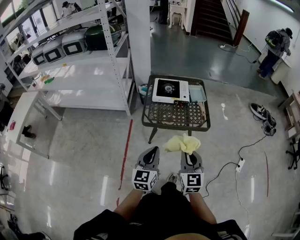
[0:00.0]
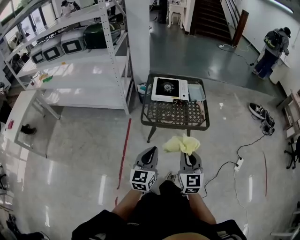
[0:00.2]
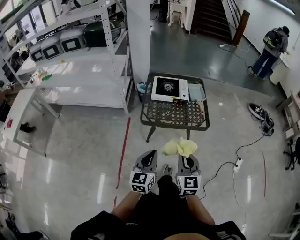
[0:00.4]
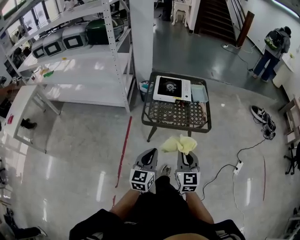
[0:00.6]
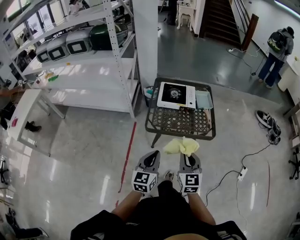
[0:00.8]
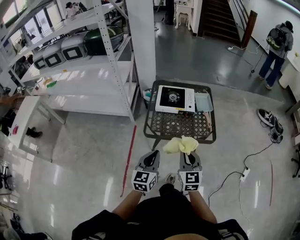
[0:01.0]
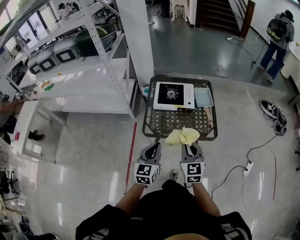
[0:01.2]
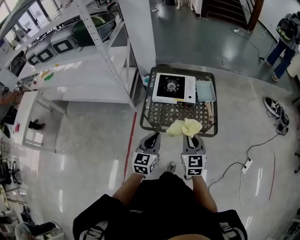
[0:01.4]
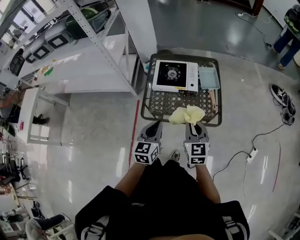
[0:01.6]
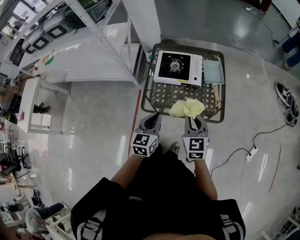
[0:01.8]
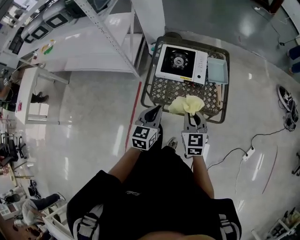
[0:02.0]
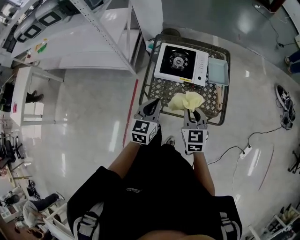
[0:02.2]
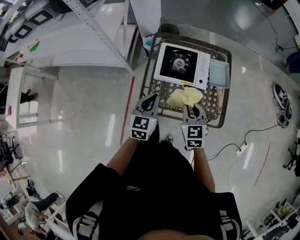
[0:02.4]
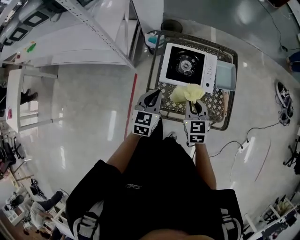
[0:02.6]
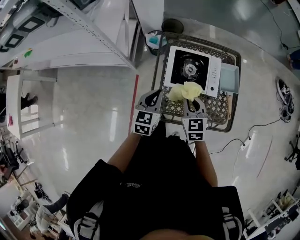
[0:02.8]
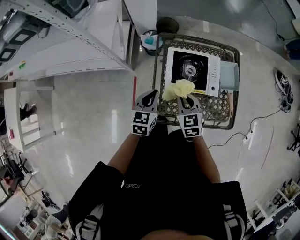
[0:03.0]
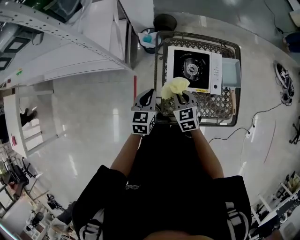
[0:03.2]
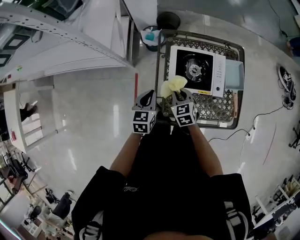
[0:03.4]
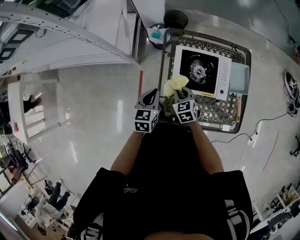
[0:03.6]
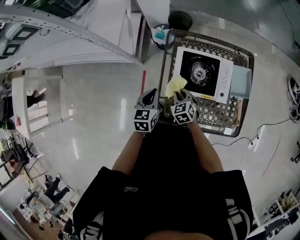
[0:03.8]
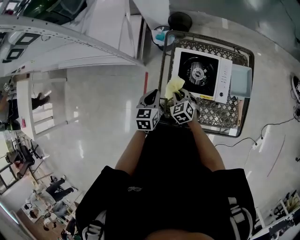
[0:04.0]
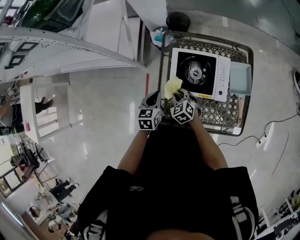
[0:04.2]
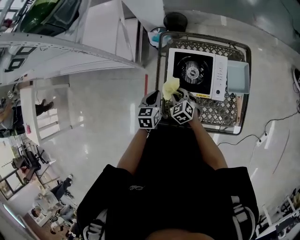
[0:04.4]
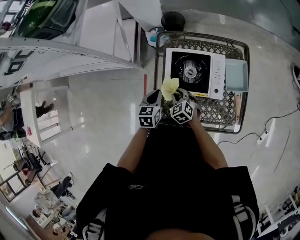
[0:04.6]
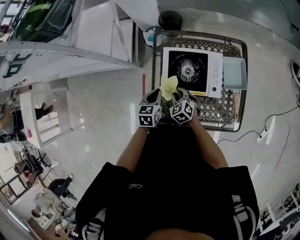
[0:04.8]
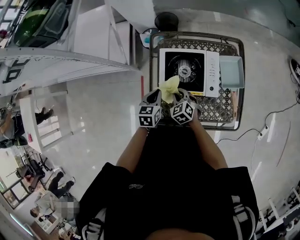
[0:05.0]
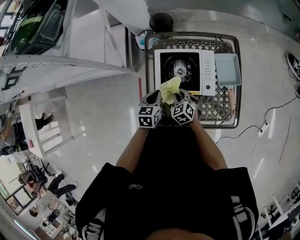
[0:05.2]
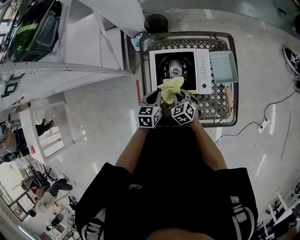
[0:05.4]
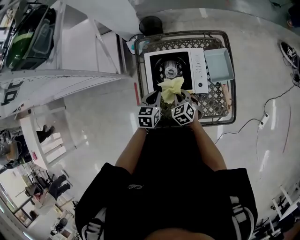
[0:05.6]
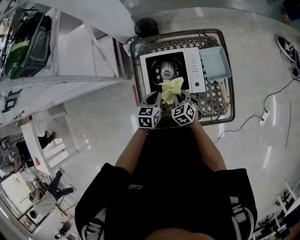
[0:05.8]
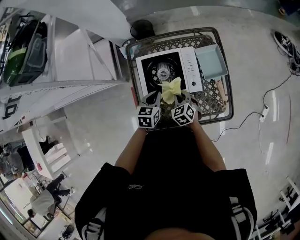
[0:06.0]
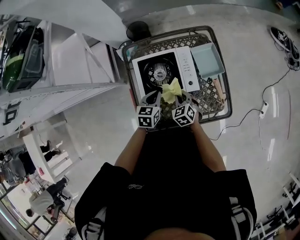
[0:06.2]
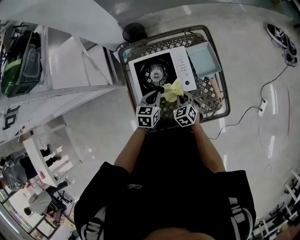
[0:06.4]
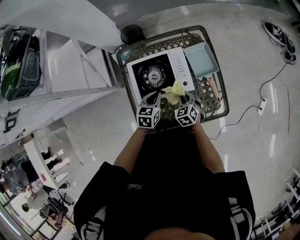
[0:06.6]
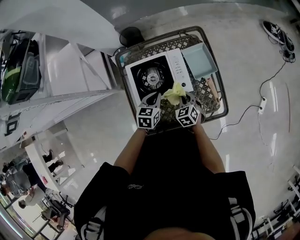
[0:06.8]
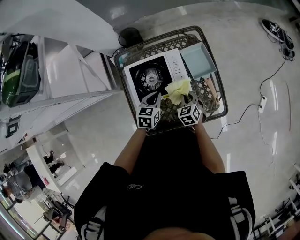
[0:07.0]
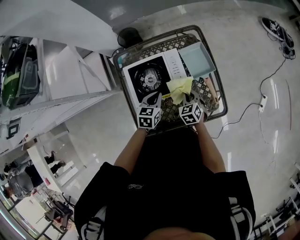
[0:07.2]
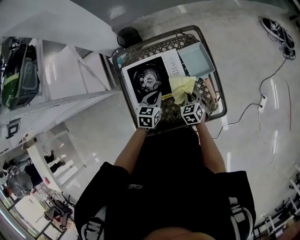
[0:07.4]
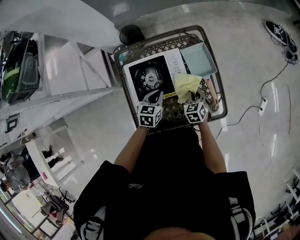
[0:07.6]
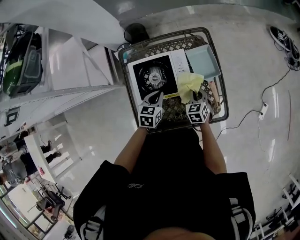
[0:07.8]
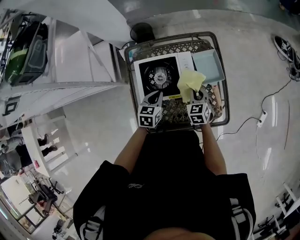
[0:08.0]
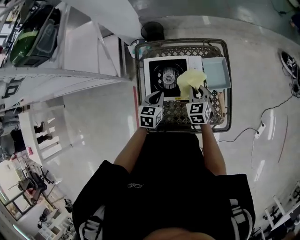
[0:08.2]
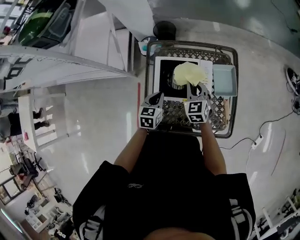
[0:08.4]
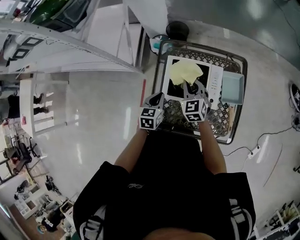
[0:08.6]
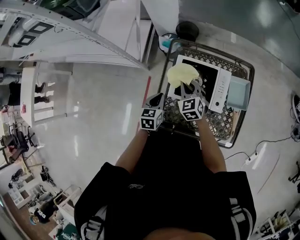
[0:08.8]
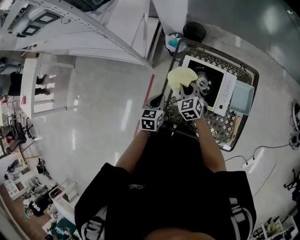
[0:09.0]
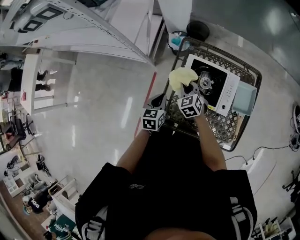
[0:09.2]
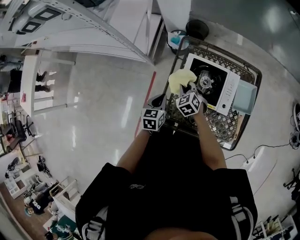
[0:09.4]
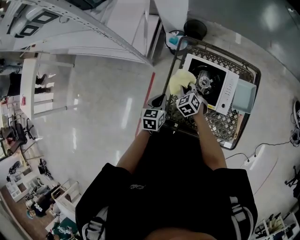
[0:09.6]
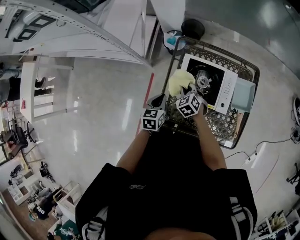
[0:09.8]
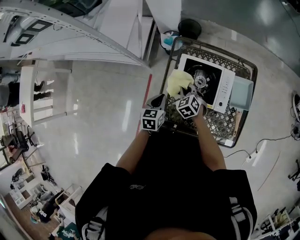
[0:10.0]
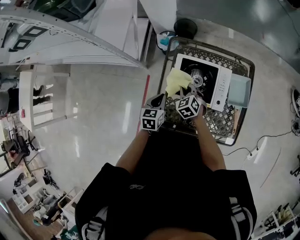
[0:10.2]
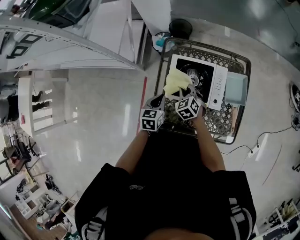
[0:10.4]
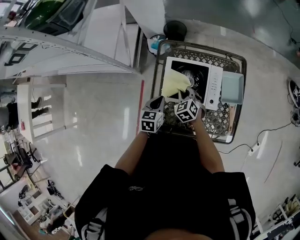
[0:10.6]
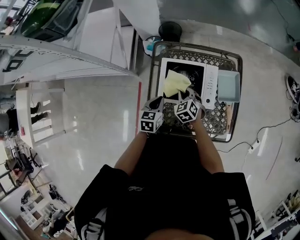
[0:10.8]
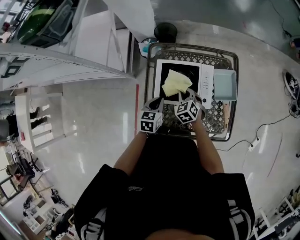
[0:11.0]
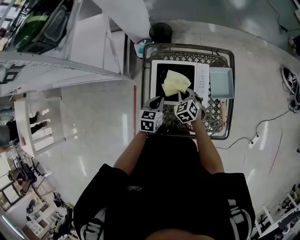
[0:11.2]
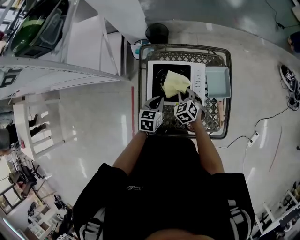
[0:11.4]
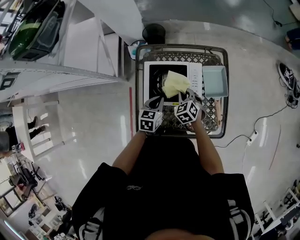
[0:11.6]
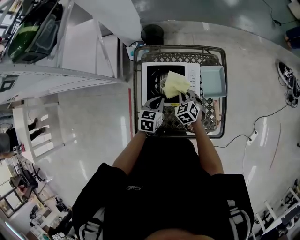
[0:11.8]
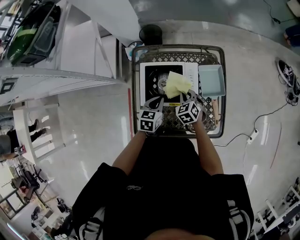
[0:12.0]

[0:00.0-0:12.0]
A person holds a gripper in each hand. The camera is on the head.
0:00.0 to 0:01.6: The two grippers go some 25 cm forward.
0:01.6 to 0:03.0: The left gripper moves forward and to the left, some 35 cm; the right gripper shifts approximately 35 cm forward, to the left and downward, and rotates roughly 20 degrees.
0:03.0 to 0:04.4: The right gripper goes about 15 cm downward, and changes its angle by approximately 20 degrees, while the left gripper is displaced downward by roughly 10 cm.
0:04.4 to 0:06.0: Both grippers move to the right, roughly 15 cm.
0:06.0 to 0:07.6: The right gripper heads to the right, covering approximately 15 cm. The left gripper is displaced to the right by about 10 cm.
0:07.6 to 0:09.0: The left gripper ends up approximately 25 cm from where it was, and changes its angle by approximately 40 degrees, while the right gripper shifts by approximately 35 cm, and swivels some 40 degrees.
0:09.0 to 0:10.4: The right gripper ends up some 5 cm from where it was.
0:10.4 to 0:12.0: The grippers both shift to the right by approximately 15 cm.

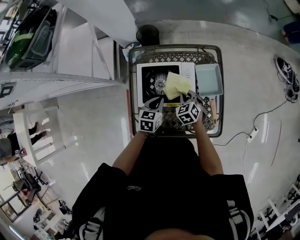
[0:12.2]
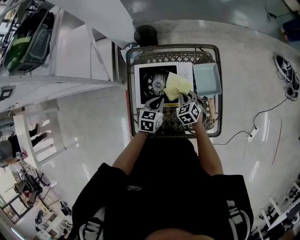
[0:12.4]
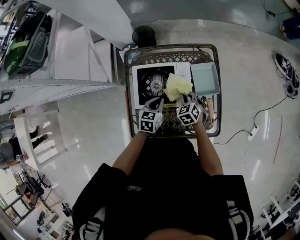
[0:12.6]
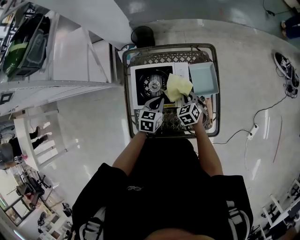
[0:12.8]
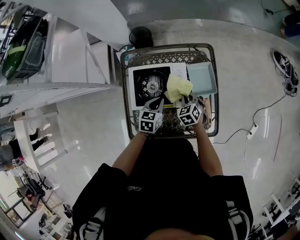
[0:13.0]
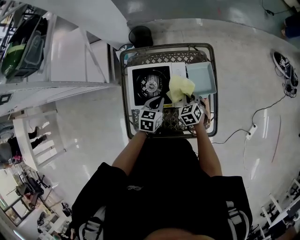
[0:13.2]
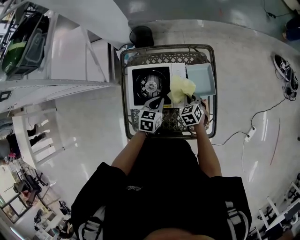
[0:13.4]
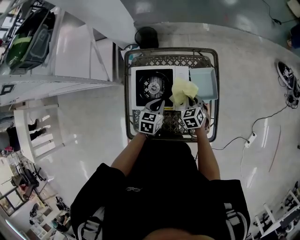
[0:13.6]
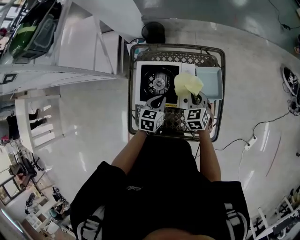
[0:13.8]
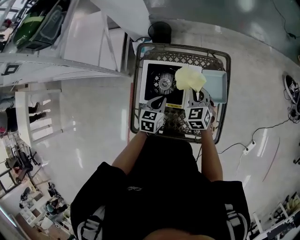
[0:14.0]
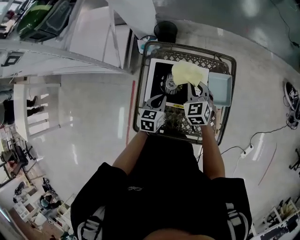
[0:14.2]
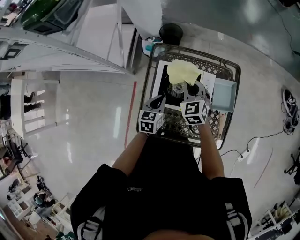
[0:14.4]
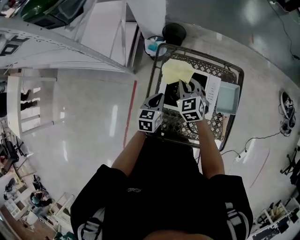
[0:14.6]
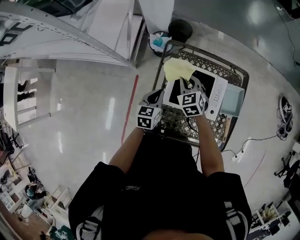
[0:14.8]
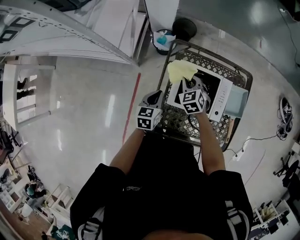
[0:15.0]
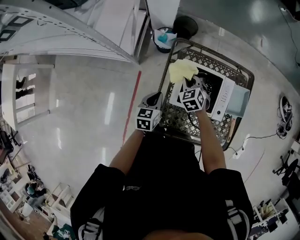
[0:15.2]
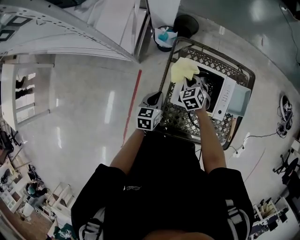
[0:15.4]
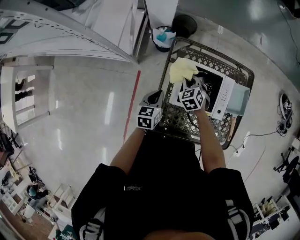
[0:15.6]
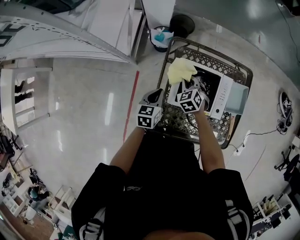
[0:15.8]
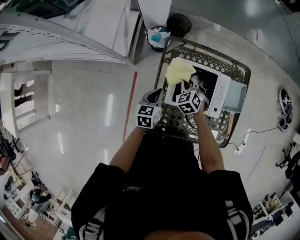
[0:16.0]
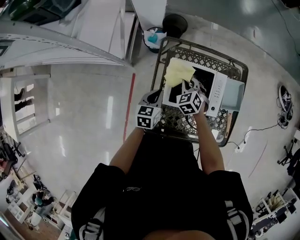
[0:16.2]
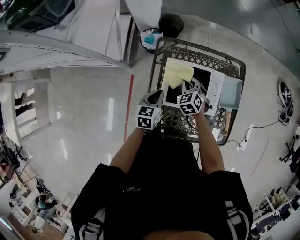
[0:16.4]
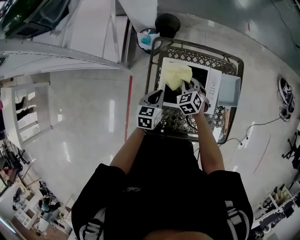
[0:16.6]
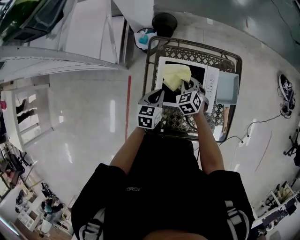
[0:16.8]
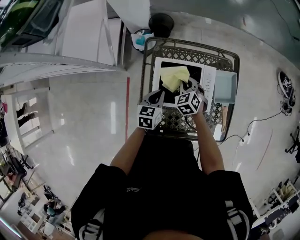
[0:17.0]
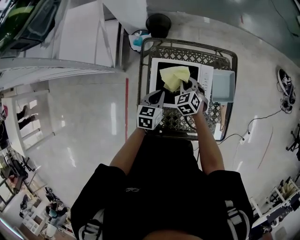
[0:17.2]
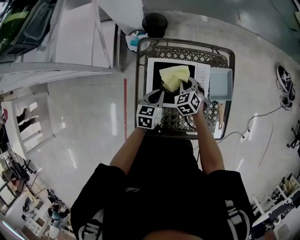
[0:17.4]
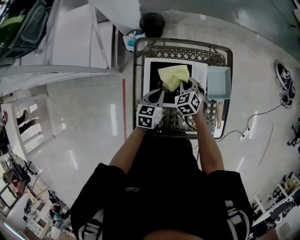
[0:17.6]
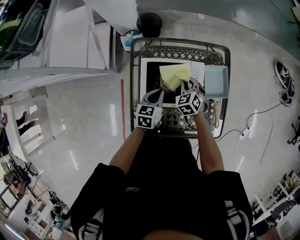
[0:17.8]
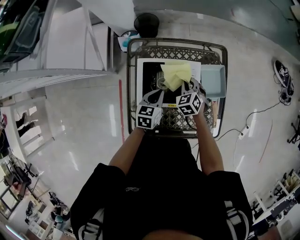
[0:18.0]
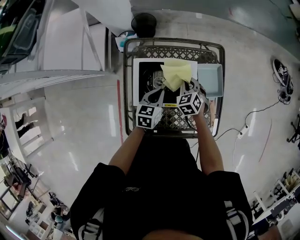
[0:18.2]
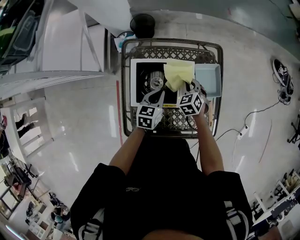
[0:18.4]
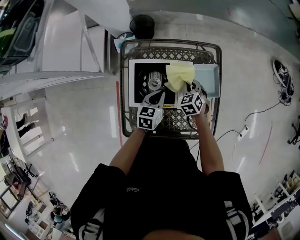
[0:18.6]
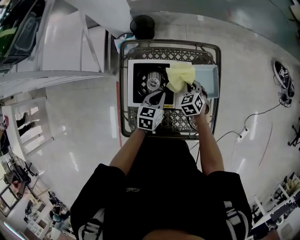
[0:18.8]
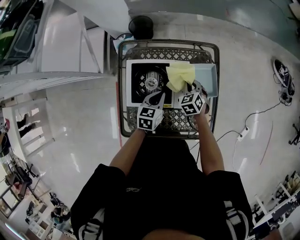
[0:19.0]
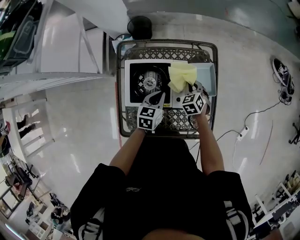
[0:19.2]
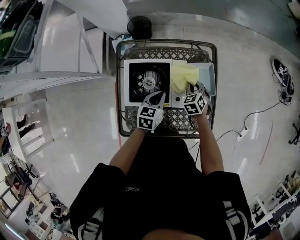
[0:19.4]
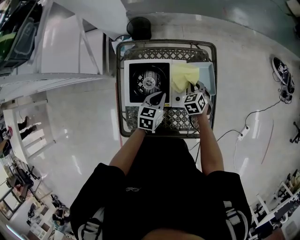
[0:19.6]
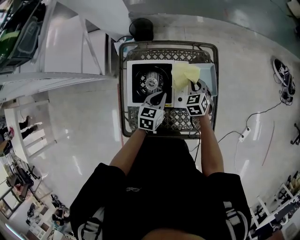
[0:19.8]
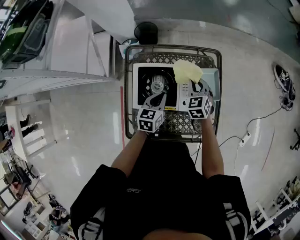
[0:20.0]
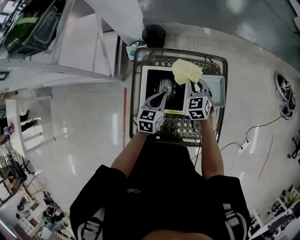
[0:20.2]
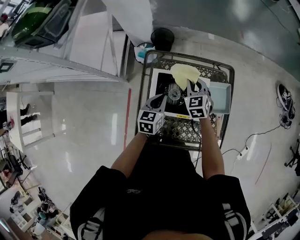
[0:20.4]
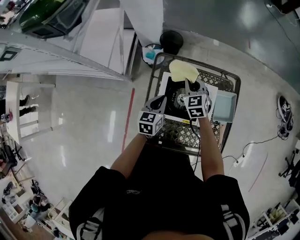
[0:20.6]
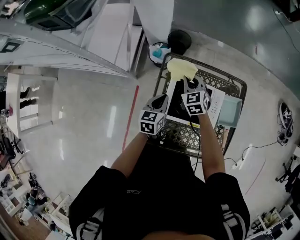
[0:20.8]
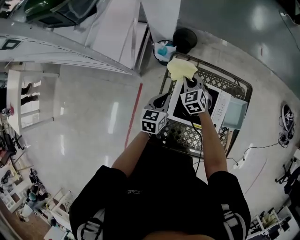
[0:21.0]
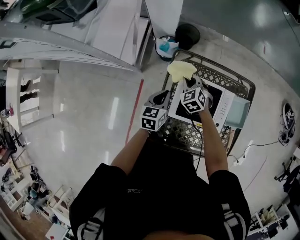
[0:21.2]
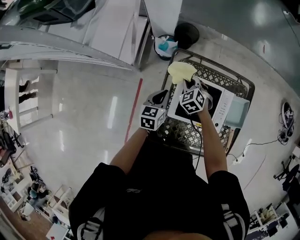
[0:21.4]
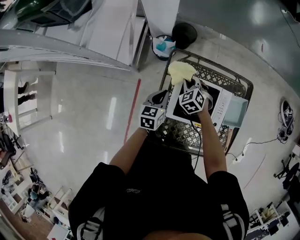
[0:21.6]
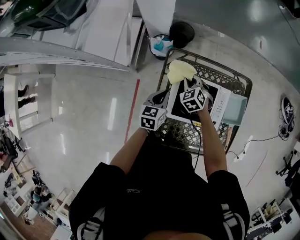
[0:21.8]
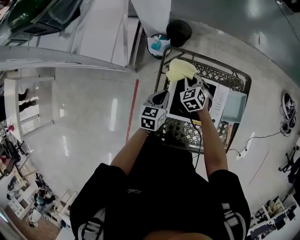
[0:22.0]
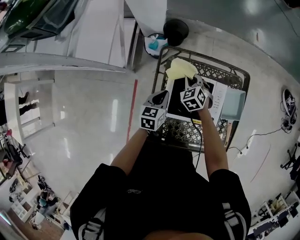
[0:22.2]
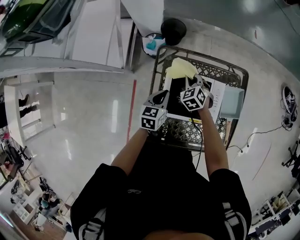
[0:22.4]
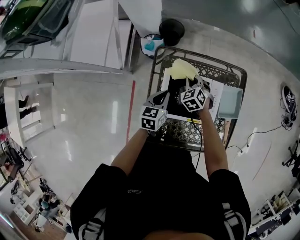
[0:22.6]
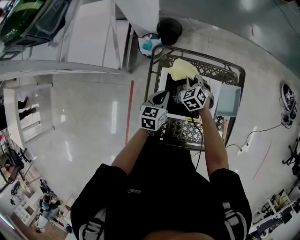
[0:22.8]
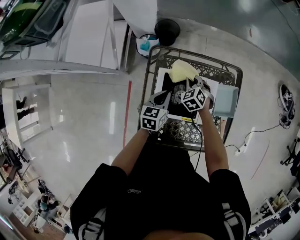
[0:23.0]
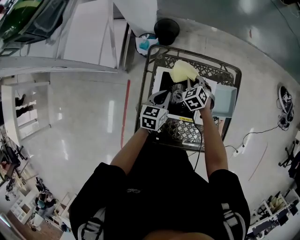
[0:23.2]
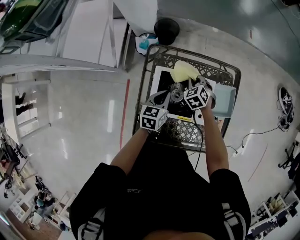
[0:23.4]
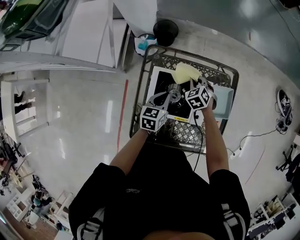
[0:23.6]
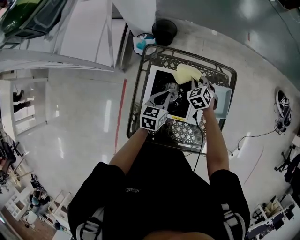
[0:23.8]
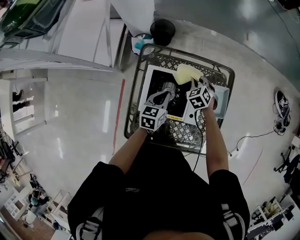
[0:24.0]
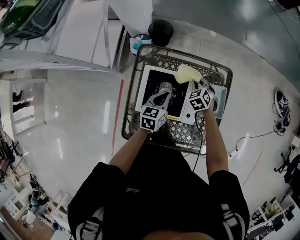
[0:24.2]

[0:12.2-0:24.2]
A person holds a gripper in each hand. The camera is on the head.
0:12.2 to 0:13.8: The right gripper goes about 10 cm upward and to the right.
0:13.8 to 0:15.2: The two grippers go approximately 25 cm to the left. The right gripper changes its angle by approximately 20 degrees.
0:15.2 to 0:16.6: Both grippers travel together to the right, roughly 10 cm.
0:16.6 to 0:18.2: Both grippers move to the right, roughly 15 cm.
0:18.2 to 0:19.8: Both grippers travel together to the right, some 5 cm.
0:19.8 to 0:21.2: Both grippers move to the left, approximately 30 cm. The right gripper swivels approximately 30 degrees.
0:21.2 to 0:22.6: The two grippers go some 10 cm to the right.
0:22.6 to 0:24.2: The two grippers go some 15 cm to the right.
